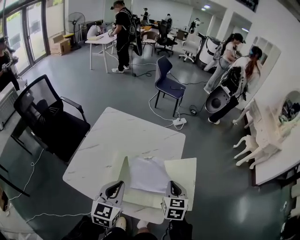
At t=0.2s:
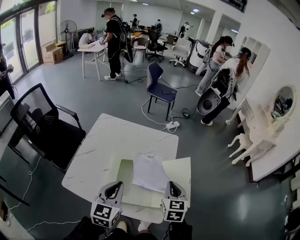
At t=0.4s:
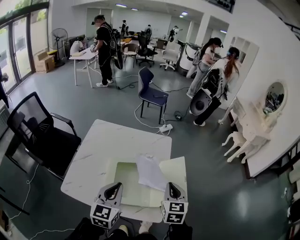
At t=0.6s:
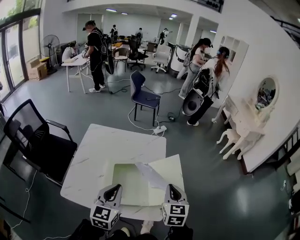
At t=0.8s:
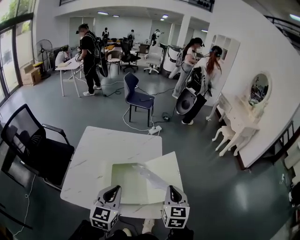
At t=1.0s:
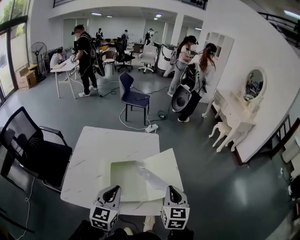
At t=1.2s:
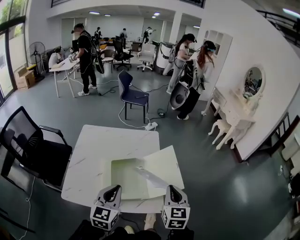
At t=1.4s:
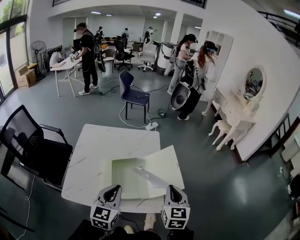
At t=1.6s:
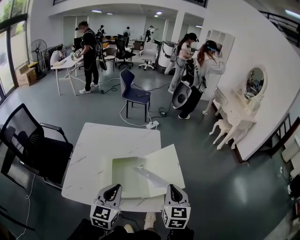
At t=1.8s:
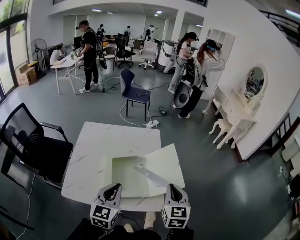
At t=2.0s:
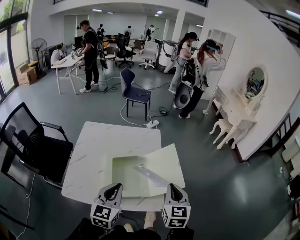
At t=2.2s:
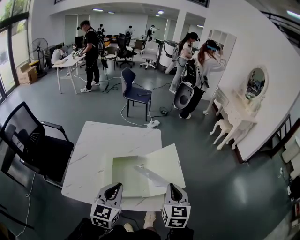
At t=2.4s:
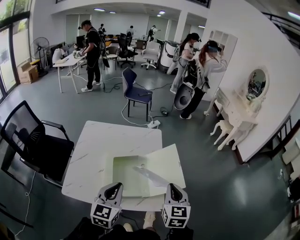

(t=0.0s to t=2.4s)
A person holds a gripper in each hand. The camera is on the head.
t=0.0s - t=1.2s: The left gripper moves backward, approximately 10 cm. Meanwhile the right gripper goes roughly 20 cm backward and upward, and swivels roughly 20 degrees.
t=1.2s - t=2.4s: Both grippers stay about where they are.

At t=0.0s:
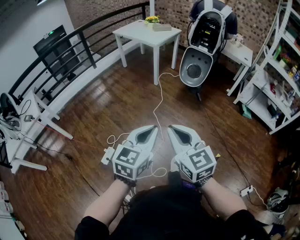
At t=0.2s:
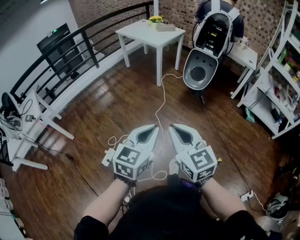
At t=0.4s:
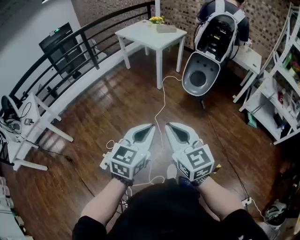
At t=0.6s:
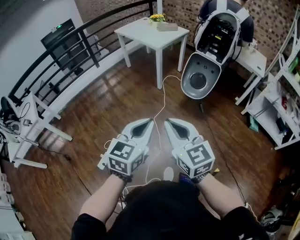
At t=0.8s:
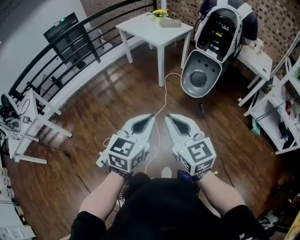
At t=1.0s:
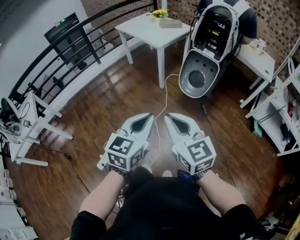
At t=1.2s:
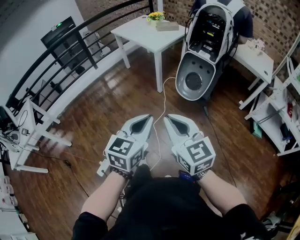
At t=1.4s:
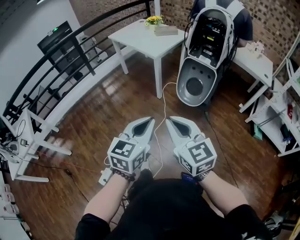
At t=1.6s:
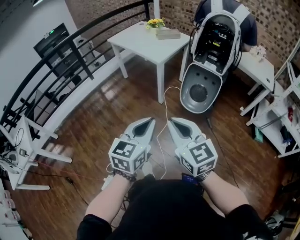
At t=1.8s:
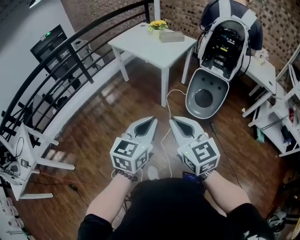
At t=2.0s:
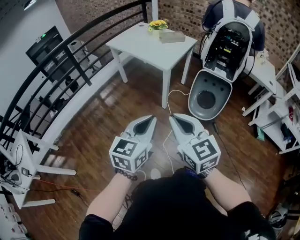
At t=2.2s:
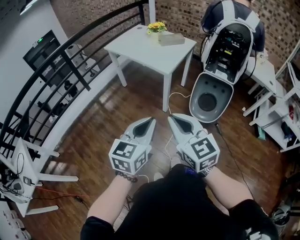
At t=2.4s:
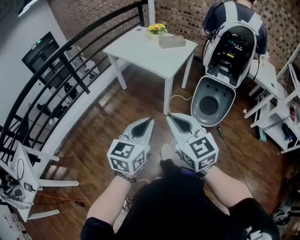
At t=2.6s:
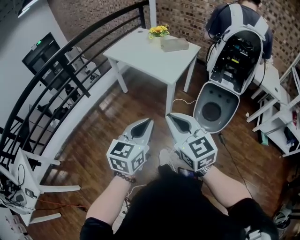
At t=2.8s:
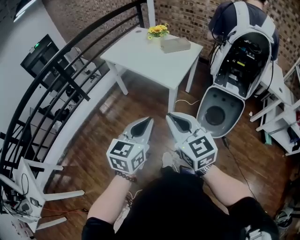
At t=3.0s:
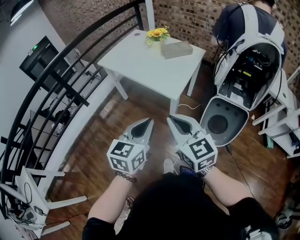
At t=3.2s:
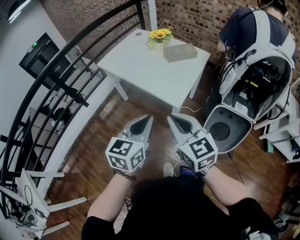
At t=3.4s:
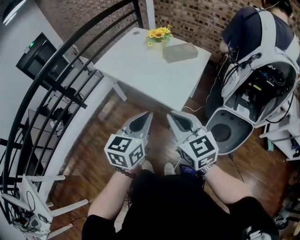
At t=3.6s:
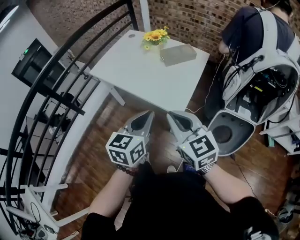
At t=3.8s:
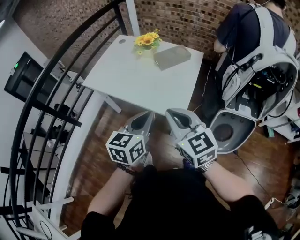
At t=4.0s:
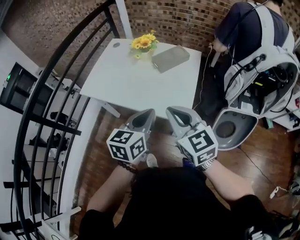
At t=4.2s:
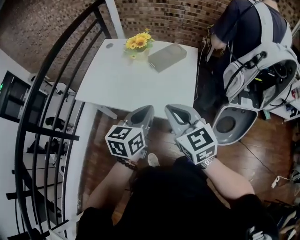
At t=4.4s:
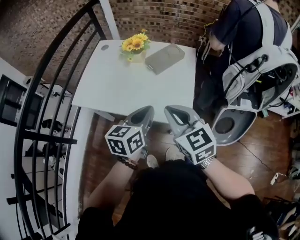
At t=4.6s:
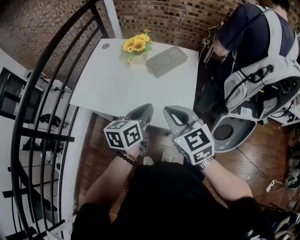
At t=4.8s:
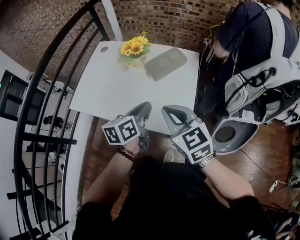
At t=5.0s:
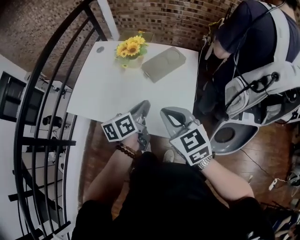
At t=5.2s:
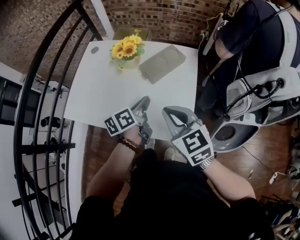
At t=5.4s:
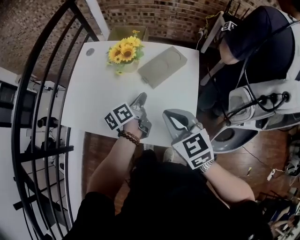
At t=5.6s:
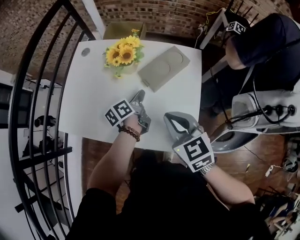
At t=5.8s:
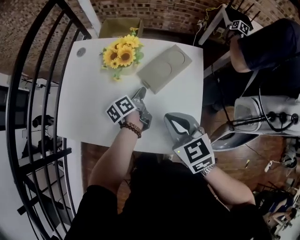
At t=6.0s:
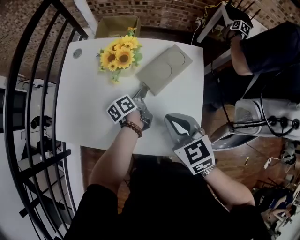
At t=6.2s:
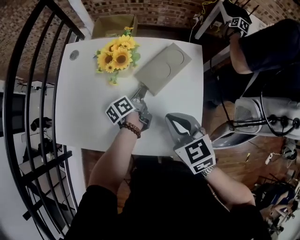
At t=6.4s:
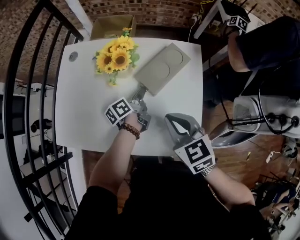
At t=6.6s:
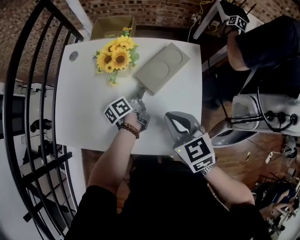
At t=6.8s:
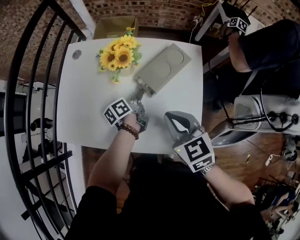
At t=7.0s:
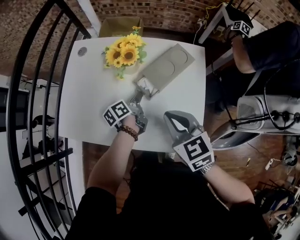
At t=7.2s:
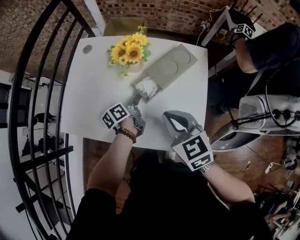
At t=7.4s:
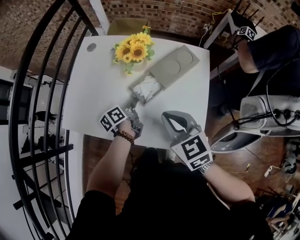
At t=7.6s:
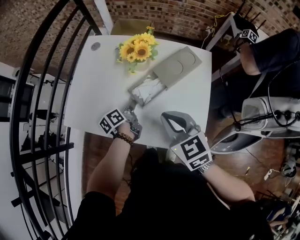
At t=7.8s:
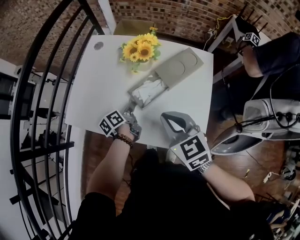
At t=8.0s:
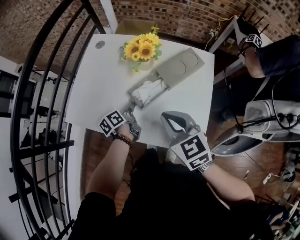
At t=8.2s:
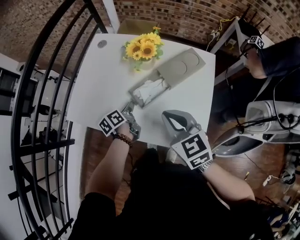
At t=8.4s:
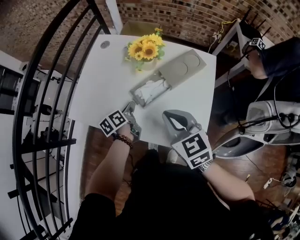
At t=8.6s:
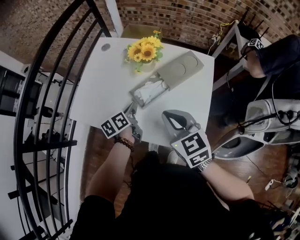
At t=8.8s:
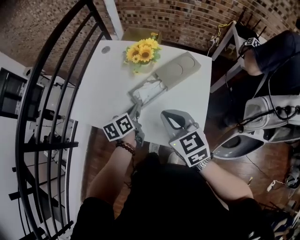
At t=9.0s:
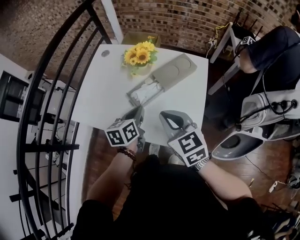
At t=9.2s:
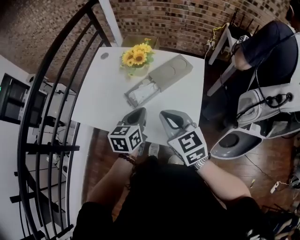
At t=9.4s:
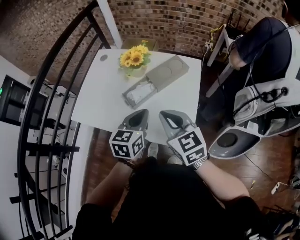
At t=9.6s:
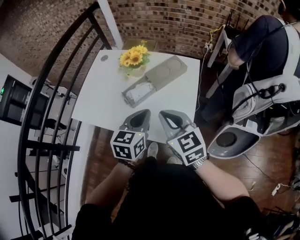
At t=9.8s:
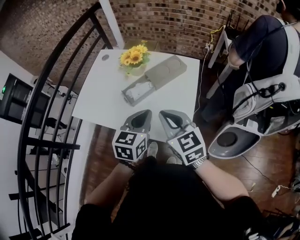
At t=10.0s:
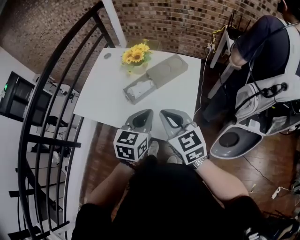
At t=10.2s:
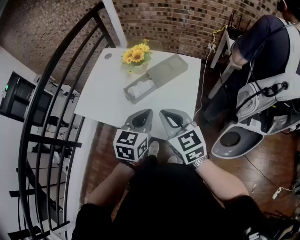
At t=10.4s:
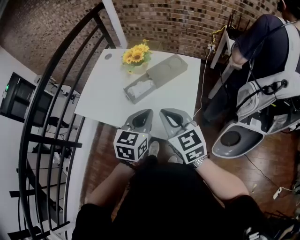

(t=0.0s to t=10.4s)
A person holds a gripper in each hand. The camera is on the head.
t=0.0s - t=1.4s: The two grippers go roughly 40 cm forward.
t=1.4s - t=3.0s: Both grippers are carried forward, roughly 50 cm.
t=3.0s - t=4.4s: The grippers both shift forward by some 30 cm. The left gripper turns by some 20 degrees. Meanwhile the right gripper rotates approximately 20 degrees.
t=4.4s - t=6.0s: The left gripper heads forward and downward, covering roughly 40 cm, and twists some 50 degrees counterclockwise, seen from behind. The right gripper heads forward and downward, covering some 25 cm.
t=6.0s - t=7.4s: The left gripper heads to the left and backward, covering about 10 cm. Meanwhile the right gripper ends up roughly 5 cm from where it was.
t=7.4s - t=9.0s: The right gripper shifts by about 5 cm; the left gripper heads upward and backward, covering approximately 15 cm, and swivels roughly 40 degrees.
t=9.0s - t=10.4s: The right gripper shifts approximately 10 cm backward and to the right. The left gripper shifts about 15 cm backward, to the right and upward, and swivels about 30 degrees.

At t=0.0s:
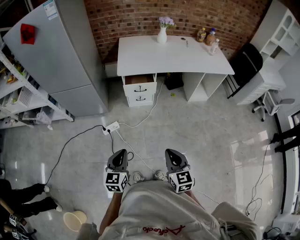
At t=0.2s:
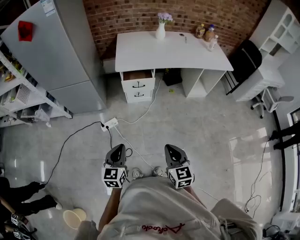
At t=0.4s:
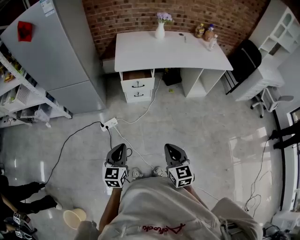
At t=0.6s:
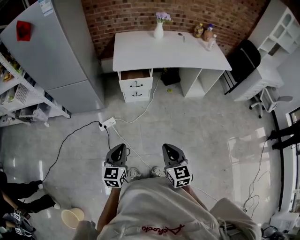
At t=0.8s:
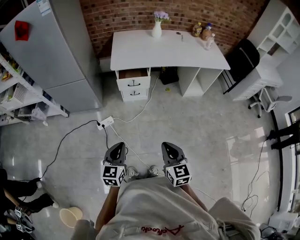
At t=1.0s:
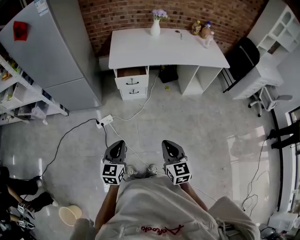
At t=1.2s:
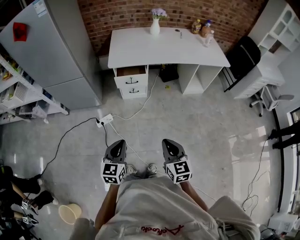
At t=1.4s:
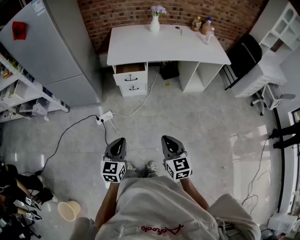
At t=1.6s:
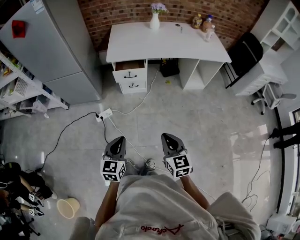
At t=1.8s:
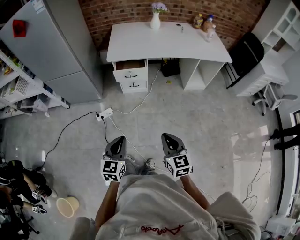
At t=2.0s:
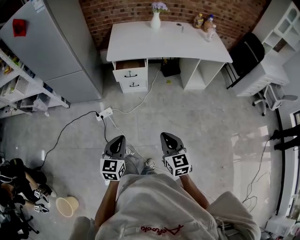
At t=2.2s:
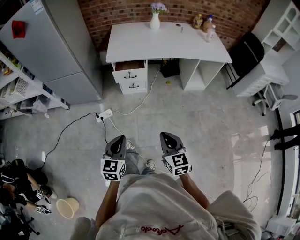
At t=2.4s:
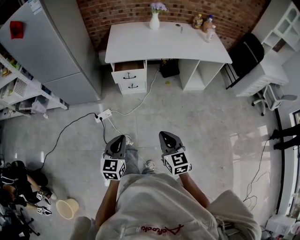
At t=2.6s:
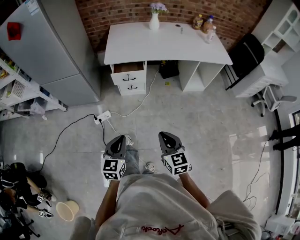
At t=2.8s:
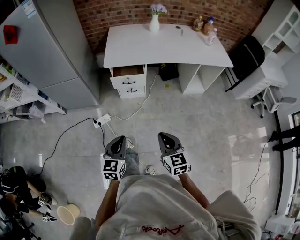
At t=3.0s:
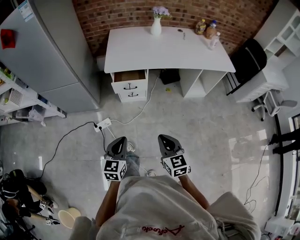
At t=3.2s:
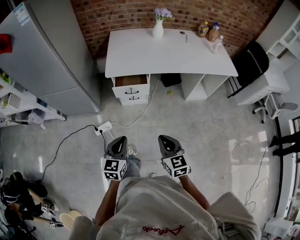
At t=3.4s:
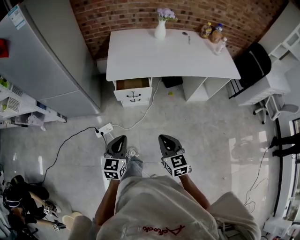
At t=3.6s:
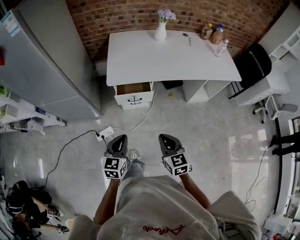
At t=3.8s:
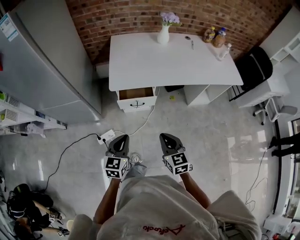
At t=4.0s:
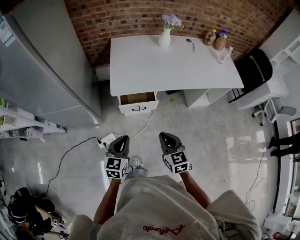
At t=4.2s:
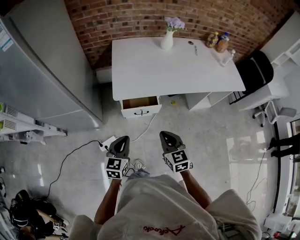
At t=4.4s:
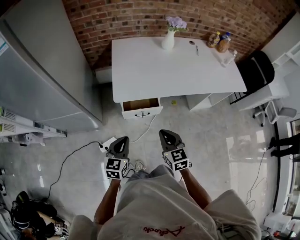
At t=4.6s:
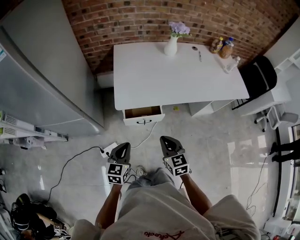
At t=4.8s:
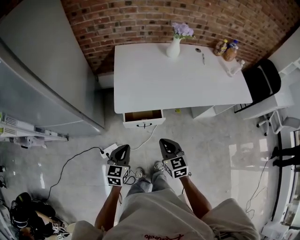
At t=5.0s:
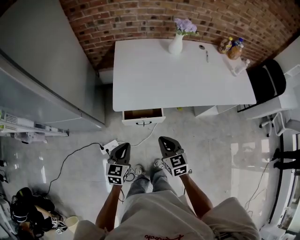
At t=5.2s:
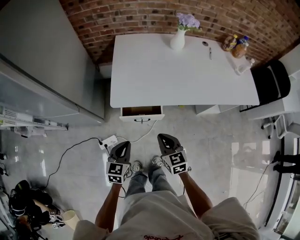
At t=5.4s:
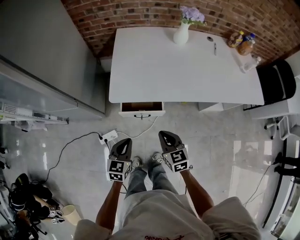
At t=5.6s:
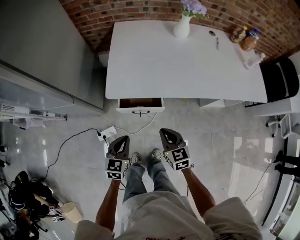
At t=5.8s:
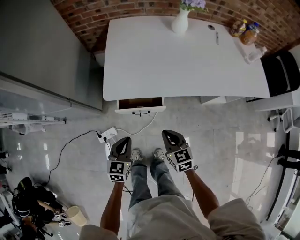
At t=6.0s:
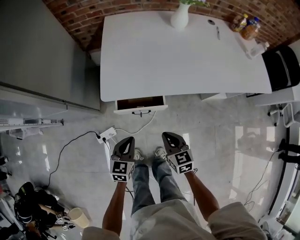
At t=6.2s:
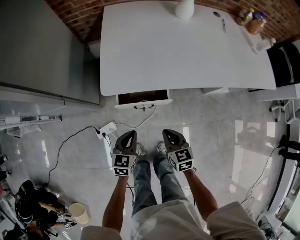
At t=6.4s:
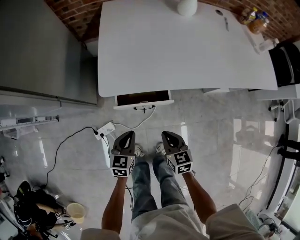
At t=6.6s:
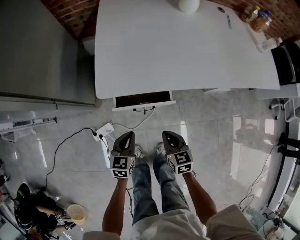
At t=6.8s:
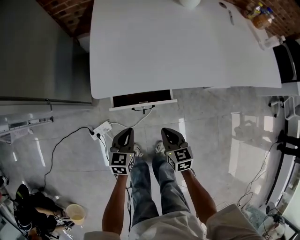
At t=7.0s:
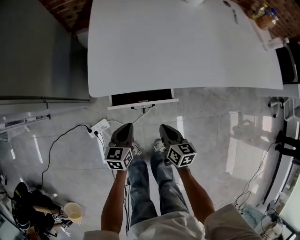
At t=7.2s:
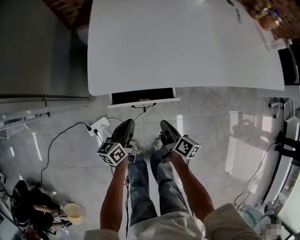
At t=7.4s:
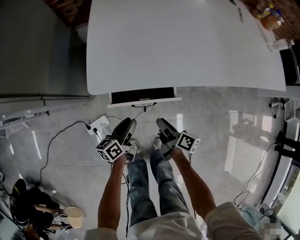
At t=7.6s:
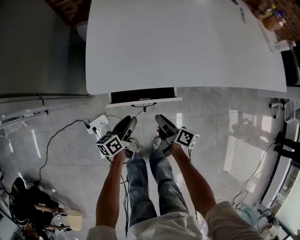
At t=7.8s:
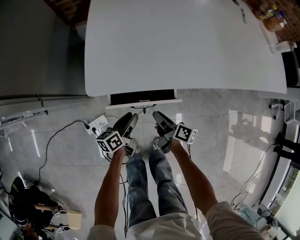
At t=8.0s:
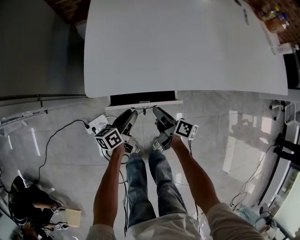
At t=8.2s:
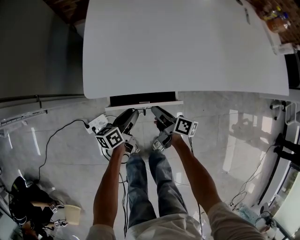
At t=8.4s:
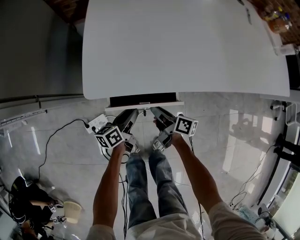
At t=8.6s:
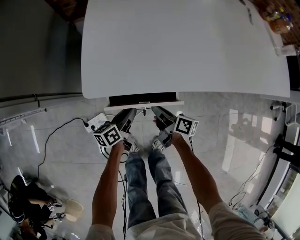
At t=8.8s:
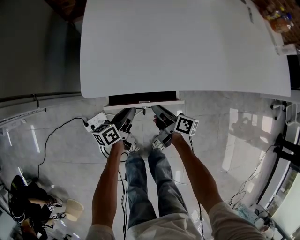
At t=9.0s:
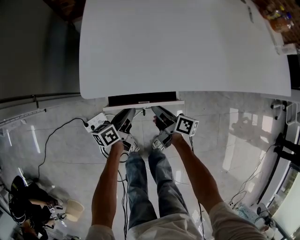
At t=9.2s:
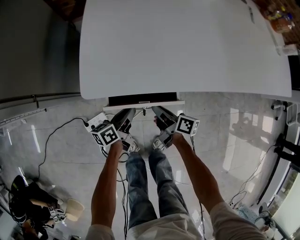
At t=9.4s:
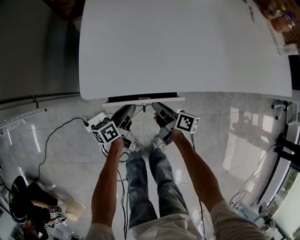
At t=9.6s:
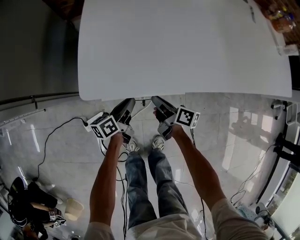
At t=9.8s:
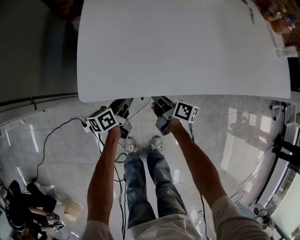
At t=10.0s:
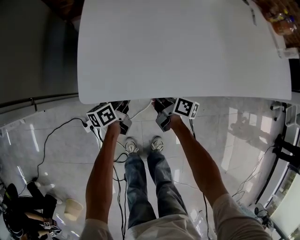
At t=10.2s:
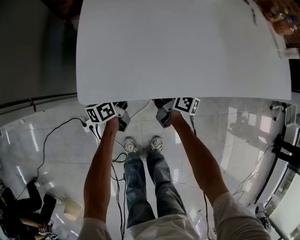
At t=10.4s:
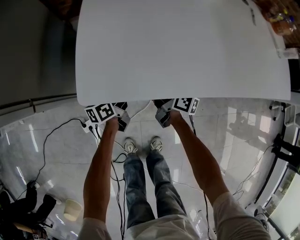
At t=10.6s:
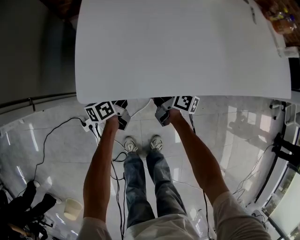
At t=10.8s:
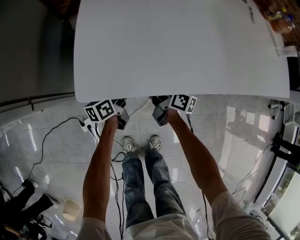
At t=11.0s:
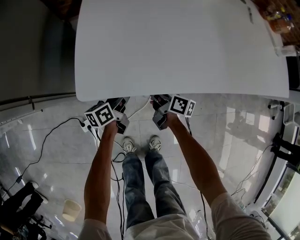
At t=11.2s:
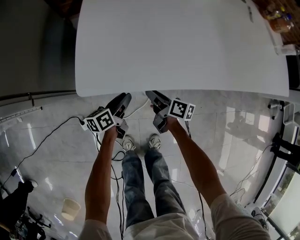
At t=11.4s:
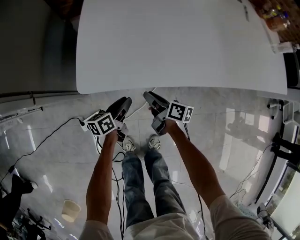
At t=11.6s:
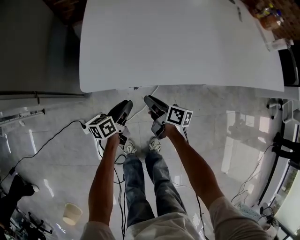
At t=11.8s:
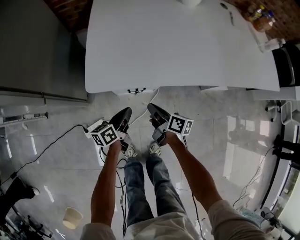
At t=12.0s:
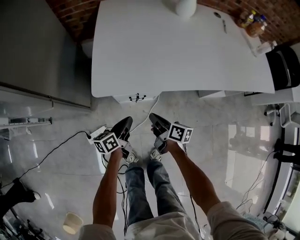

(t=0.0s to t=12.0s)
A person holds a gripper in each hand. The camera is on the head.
t=0.0s - t=1.6s: The grippers both shift to the right by some 10 cm.
t=1.6s - t=3.0s: Both grippers move forward, some 15 cm.
t=3.0s - t=4.4s: Both grippers move forward and to the left, roughly 30 cm.
t=4.4s - t=6.0s: The right gripper shifts some 20 cm downward and forward; the left gripper is displaced downward, forward and to the right by some 15 cm.
t=6.0s - t=7.6s: The grippers both shift downward by some 20 cm. The left gripper rotates around the line of its fingers by roughly 50 degrees, counterclockwise from behind, and opens its fingers; the right gripper twists roughly 60 degrees clockwise, seen from behind, and opens its fingers.
t=7.6s - t=9.0s: The two grippers go some 5 cm forward. The right gripper closes its fingers. The left gripper closes its fingers.
t=9.0s - t=10.4s: Both grippers travel together forward, about 10 cm.
t=10.4s - t=12.0s: Both grippers move backward and upward, approximately 15 cm. The right gripper opens and closes again.
